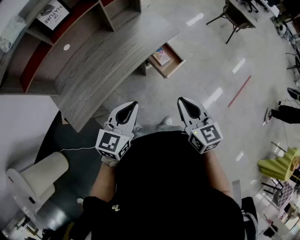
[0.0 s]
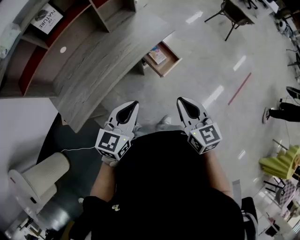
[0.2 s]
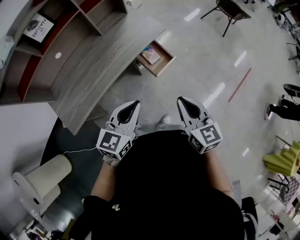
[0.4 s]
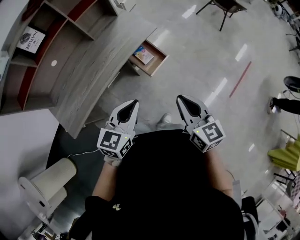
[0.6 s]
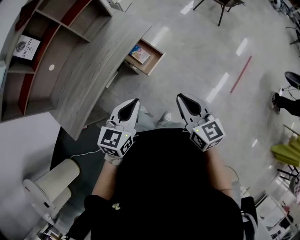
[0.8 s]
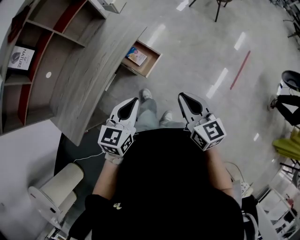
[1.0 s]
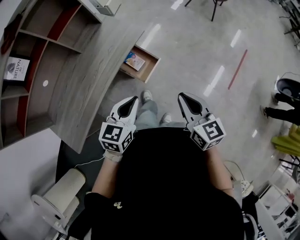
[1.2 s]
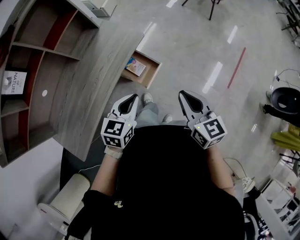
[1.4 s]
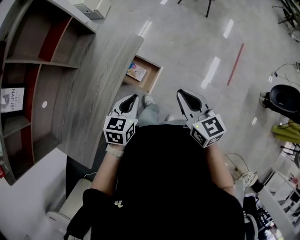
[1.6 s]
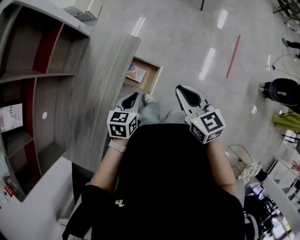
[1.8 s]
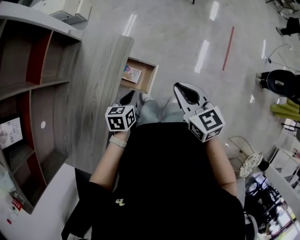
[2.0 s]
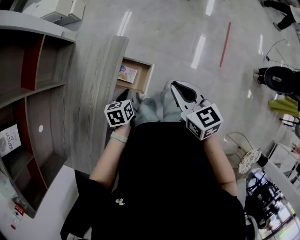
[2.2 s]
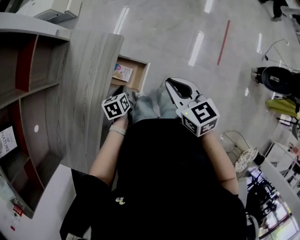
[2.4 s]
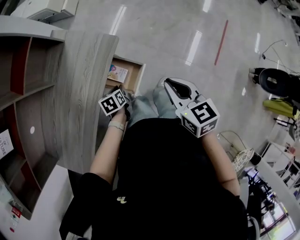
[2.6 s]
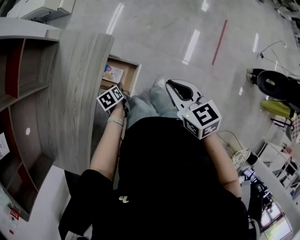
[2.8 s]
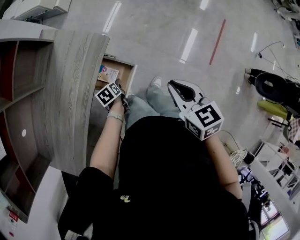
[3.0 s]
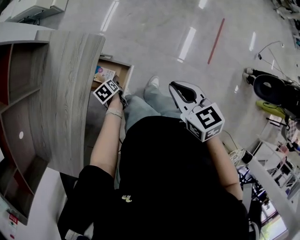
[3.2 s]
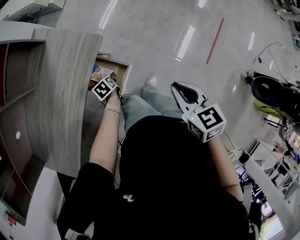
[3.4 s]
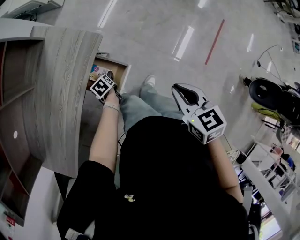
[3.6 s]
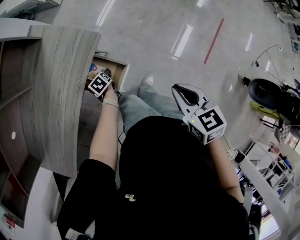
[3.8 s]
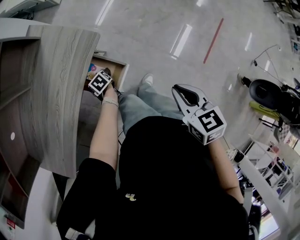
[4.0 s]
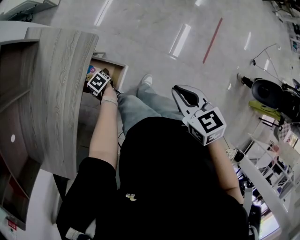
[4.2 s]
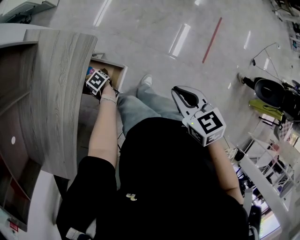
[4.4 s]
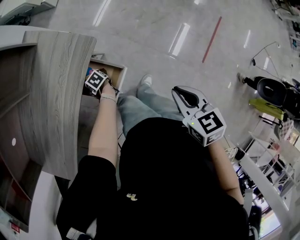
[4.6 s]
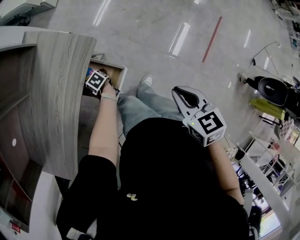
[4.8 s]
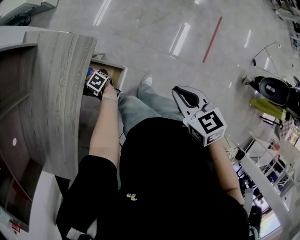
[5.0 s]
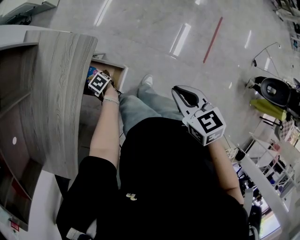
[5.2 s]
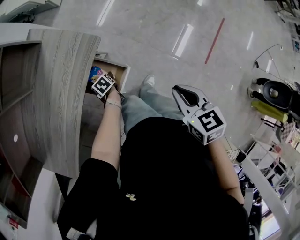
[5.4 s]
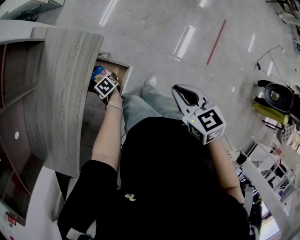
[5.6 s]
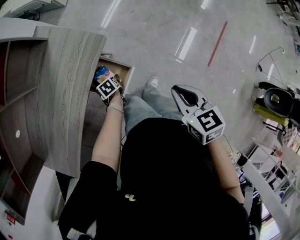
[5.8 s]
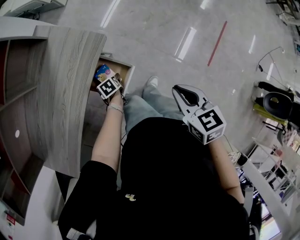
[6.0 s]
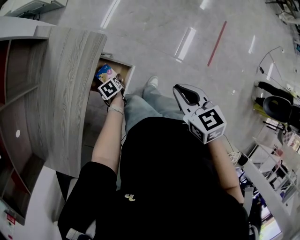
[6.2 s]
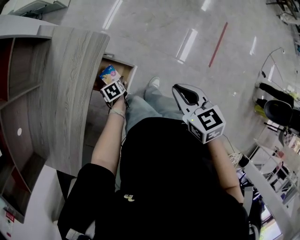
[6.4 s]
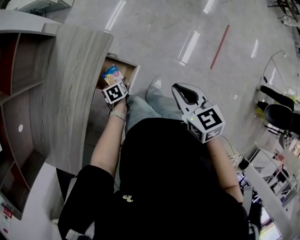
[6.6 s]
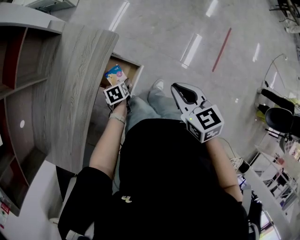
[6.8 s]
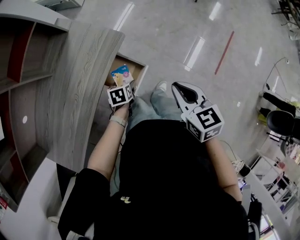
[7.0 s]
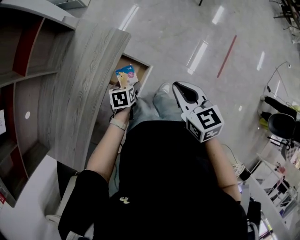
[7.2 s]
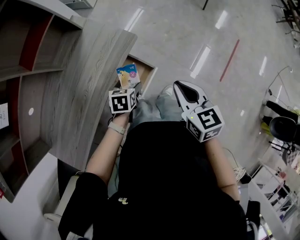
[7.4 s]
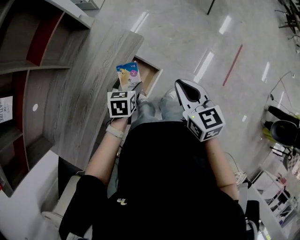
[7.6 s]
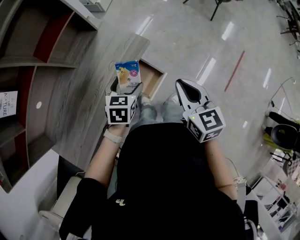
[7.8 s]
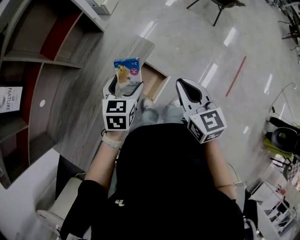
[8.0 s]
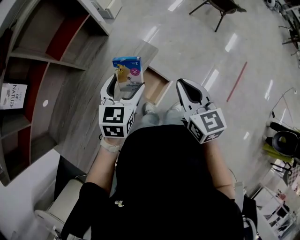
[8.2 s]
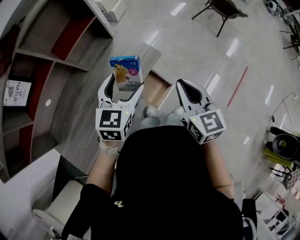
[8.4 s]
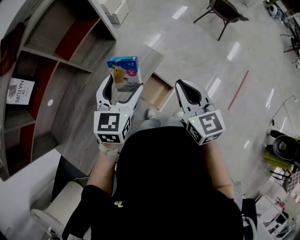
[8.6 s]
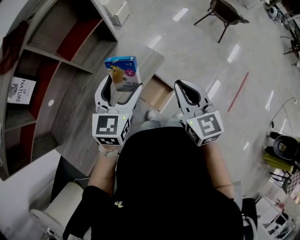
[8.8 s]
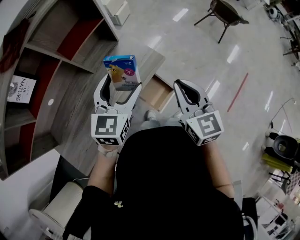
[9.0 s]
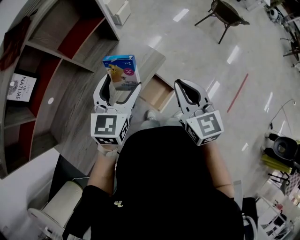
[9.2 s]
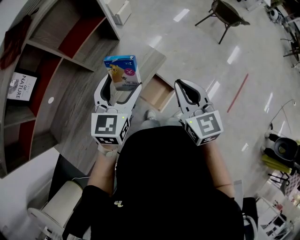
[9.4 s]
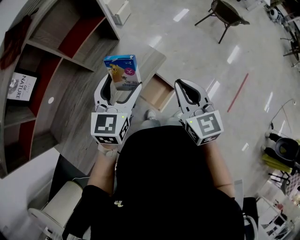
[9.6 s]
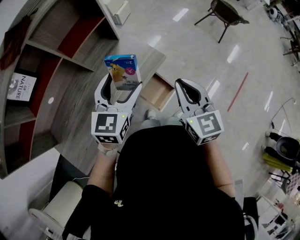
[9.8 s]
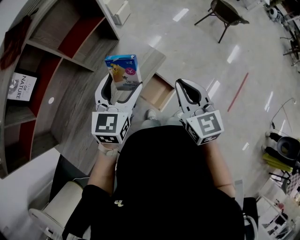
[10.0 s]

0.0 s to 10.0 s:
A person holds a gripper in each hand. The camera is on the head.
0.0 to 1.4 s: The left gripper heads forward and to the right, covering roughly 25 cm; the right gripper goes some 20 cm to the right and forward.
1.4 to 2.8 s: The left gripper shifts approximately 35 cm downward and forward, and tips its fingers downward by approximately 30 degrees, while the right gripper travels forward and downward by roughly 15 cm.
2.8 to 4.2 s: The right gripper ends up some 10 cm from where it was; the left gripper goes approximately 10 cm downward, rotates some 20 degrees, and opens its fingers.
4.2 to 5.8 s: The grippers make only small movements.
5.8 to 7.2 s: The right gripper shifts by some 10 cm, while the left gripper moves upward, about 15 cm, and rotates roughly 30 degrees.
7.2 to 8.6 s: The left gripper shifts approximately 30 cm upward, and tips its fingers upward by some 40 degrees; the right gripper goes roughly 15 cm to the left and upward, and rotates about 20 degrees.
8.6 to 10.0 s: The grippers move only a little.

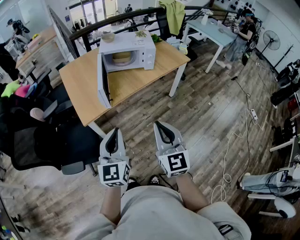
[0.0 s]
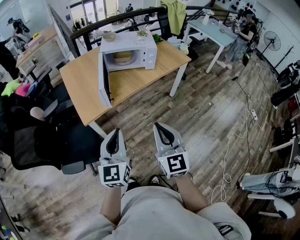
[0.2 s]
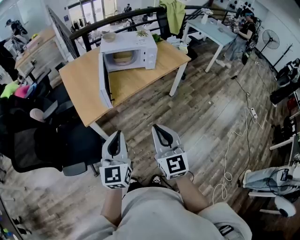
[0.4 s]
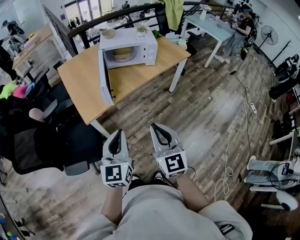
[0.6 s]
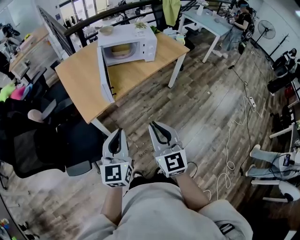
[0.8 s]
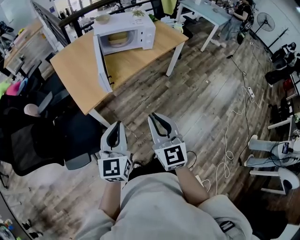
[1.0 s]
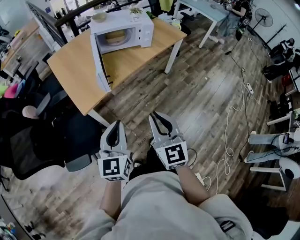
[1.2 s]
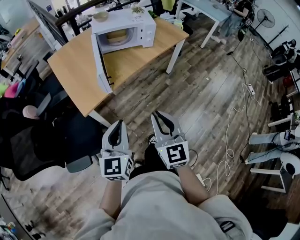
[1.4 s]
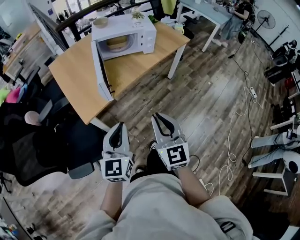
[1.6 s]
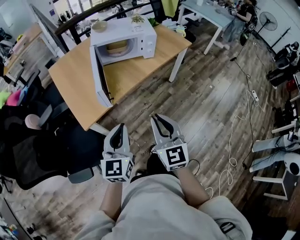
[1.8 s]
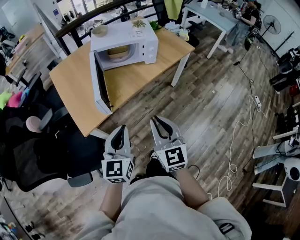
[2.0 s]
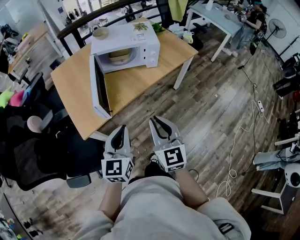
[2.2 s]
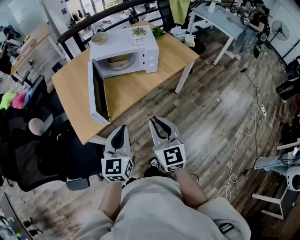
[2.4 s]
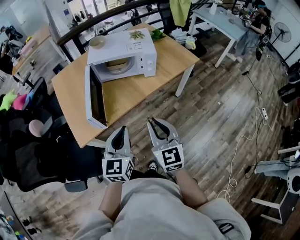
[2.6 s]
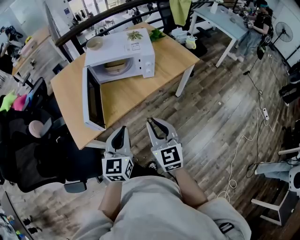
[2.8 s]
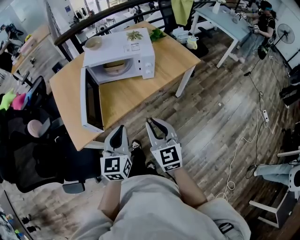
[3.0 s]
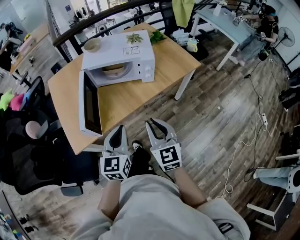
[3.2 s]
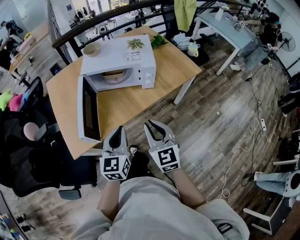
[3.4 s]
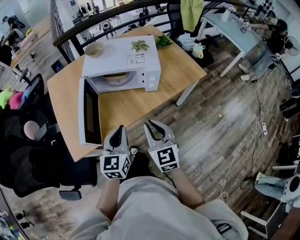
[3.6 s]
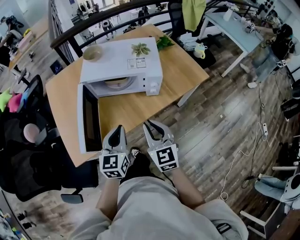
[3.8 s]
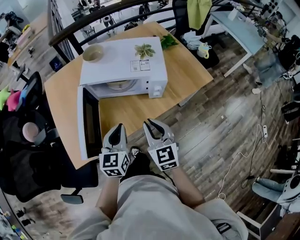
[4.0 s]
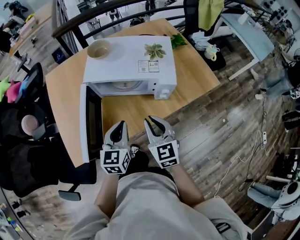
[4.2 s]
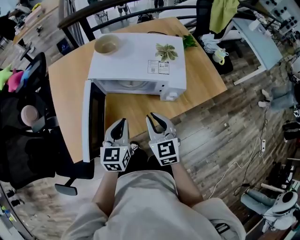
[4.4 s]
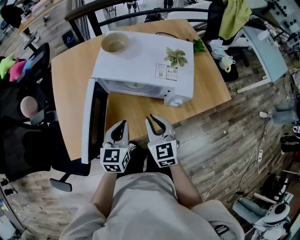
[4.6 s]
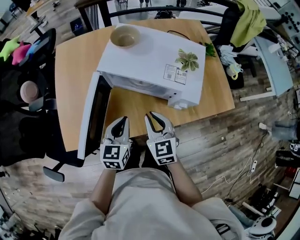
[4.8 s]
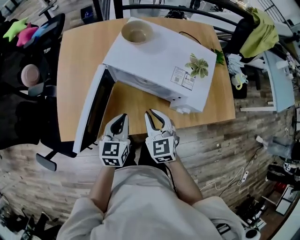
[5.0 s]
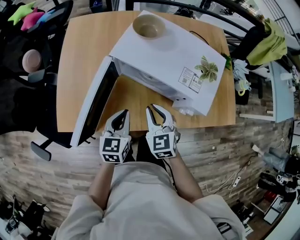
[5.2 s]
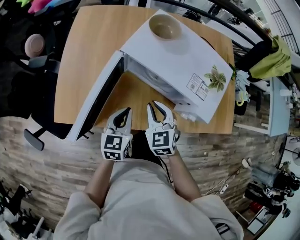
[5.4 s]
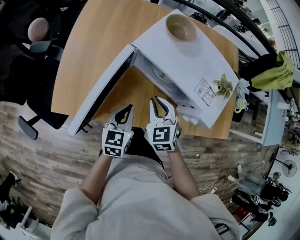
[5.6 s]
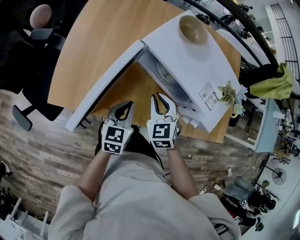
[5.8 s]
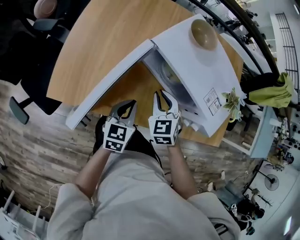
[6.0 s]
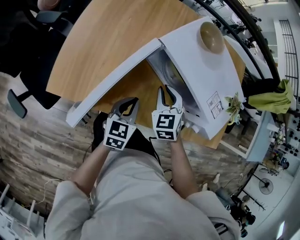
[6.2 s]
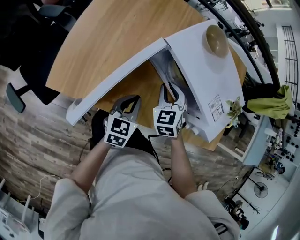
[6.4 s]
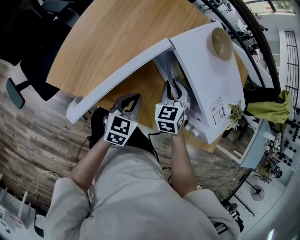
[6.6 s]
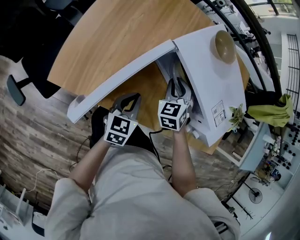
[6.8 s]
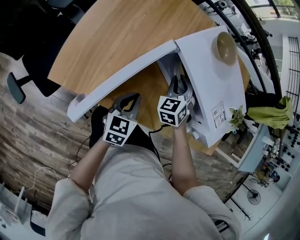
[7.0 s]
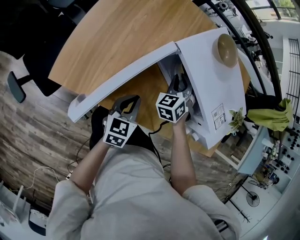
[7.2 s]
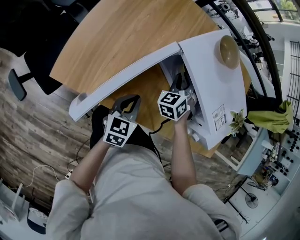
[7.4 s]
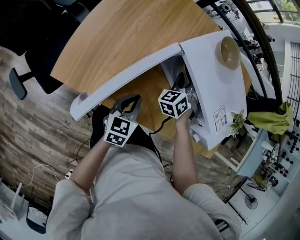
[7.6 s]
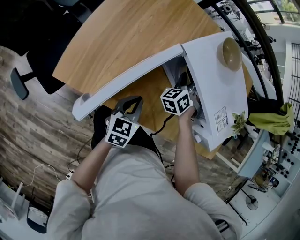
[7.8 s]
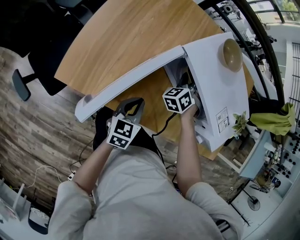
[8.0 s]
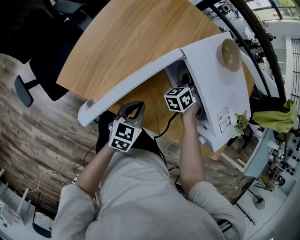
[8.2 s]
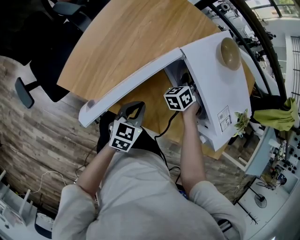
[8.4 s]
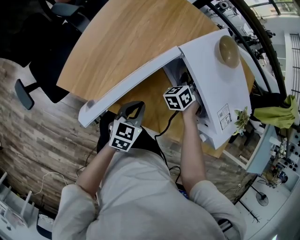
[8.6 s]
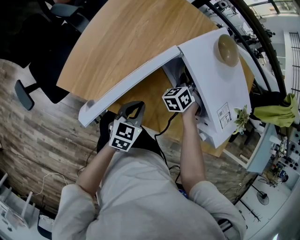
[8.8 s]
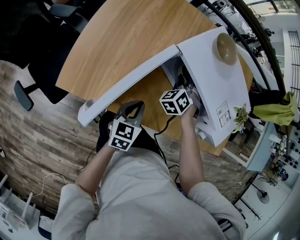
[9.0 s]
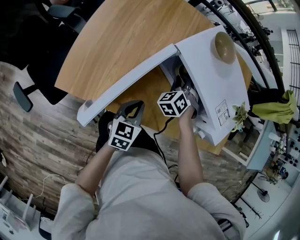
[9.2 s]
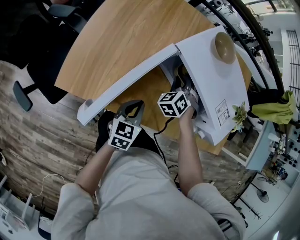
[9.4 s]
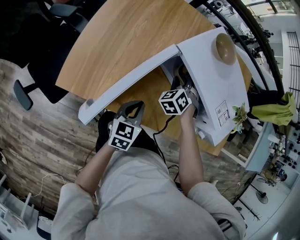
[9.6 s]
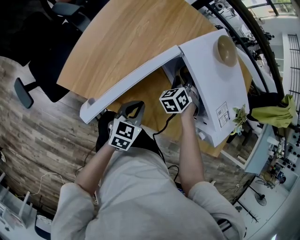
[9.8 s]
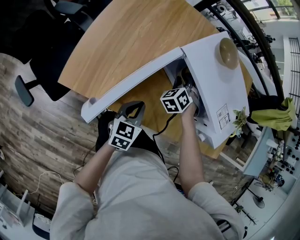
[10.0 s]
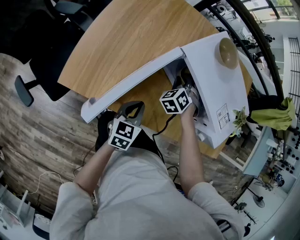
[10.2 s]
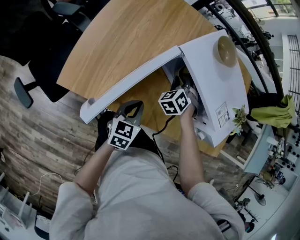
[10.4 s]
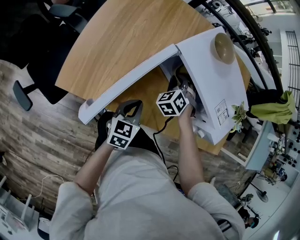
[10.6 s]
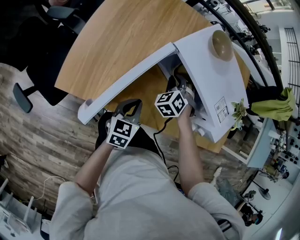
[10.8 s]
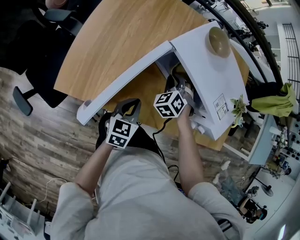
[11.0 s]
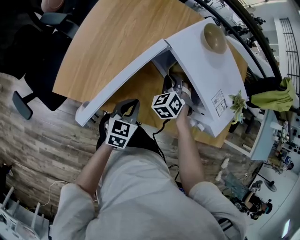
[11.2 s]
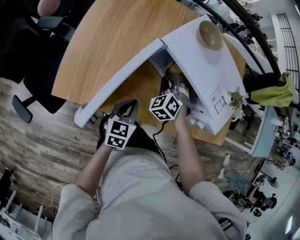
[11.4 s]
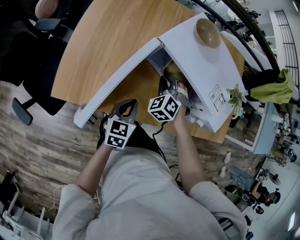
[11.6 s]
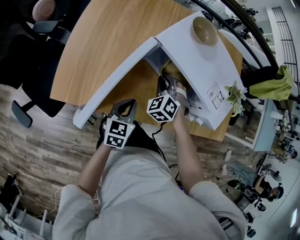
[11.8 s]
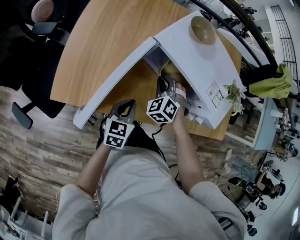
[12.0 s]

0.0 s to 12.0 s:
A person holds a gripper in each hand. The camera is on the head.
0.0 to 1.6 s: The right gripper is displaced to the left and downward by approximately 10 cm; the left gripper travels downward and forward by approximately 10 cm.
1.6 to 3.0 s: Both grippers travel together forward and to the right, approximately 25 cm.
3.0 to 4.4 s: The two grippers go some 25 cm forward.
4.4 to 6.0 s: The right gripper travels forward, downward and to the left by approximately 15 cm, and changes its angle by about 40 degrees. The left gripper is displaced downward by approximately 10 cm, and rotates some 30 degrees.
6.0 to 7.6 s: The right gripper moves forward, some 10 cm, and changes its angle by roughly 30 degrees.
7.6 to 10.4 s: The grippers stay close to where they were, moving slightly.
10.4 to 12.0 s: The right gripper moves backward, approximately 5 cm.

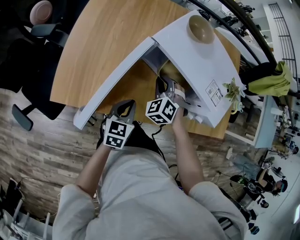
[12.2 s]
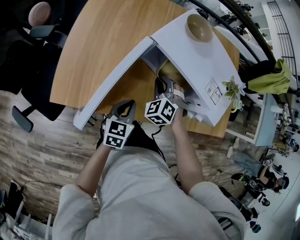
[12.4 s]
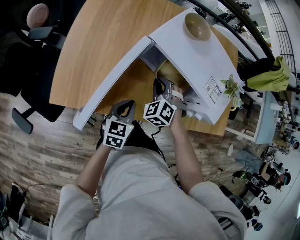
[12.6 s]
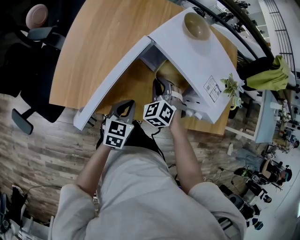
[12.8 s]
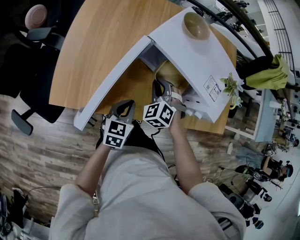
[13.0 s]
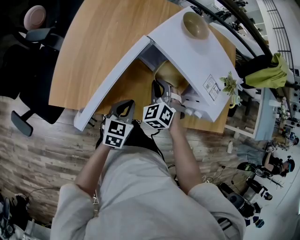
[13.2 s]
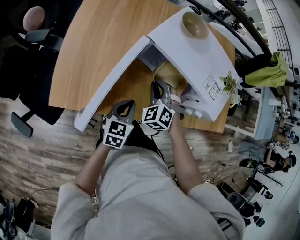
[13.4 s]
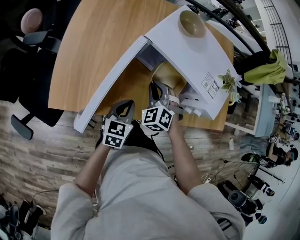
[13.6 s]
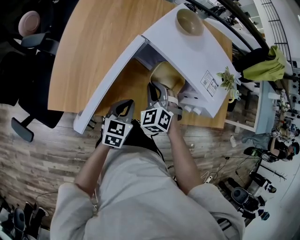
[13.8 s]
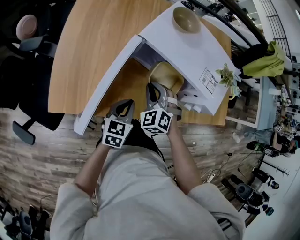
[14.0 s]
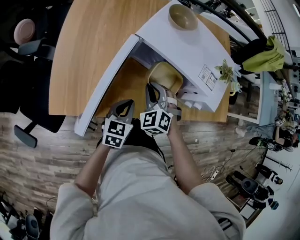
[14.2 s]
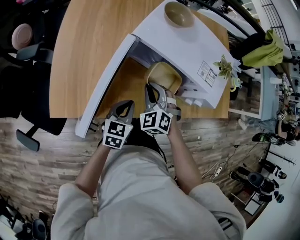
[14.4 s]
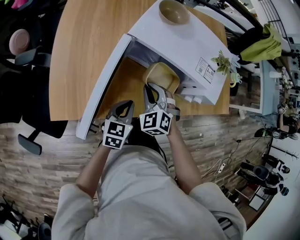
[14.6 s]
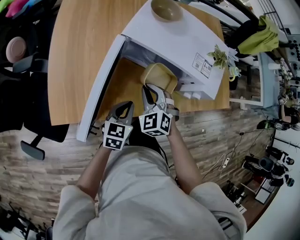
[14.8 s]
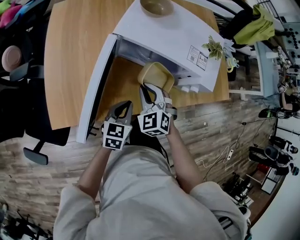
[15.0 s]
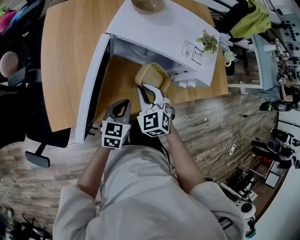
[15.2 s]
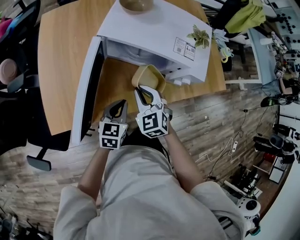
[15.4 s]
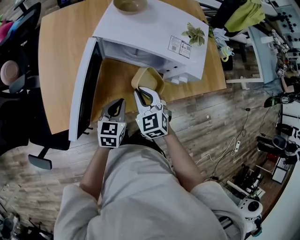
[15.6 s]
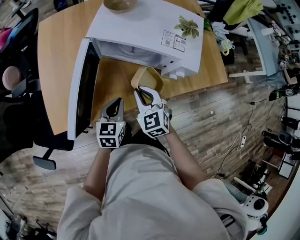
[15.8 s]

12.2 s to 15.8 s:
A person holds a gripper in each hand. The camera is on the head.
12.2 to 14.0 s: The right gripper travels backward by approximately 5 cm.
14.0 to 15.8 s: The right gripper shifts about 10 cm backward and to the right, and swivels roughly 40 degrees.
